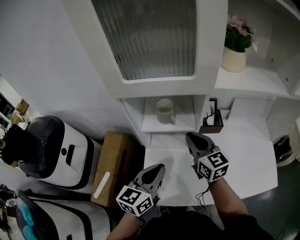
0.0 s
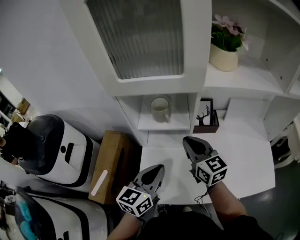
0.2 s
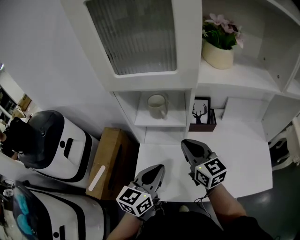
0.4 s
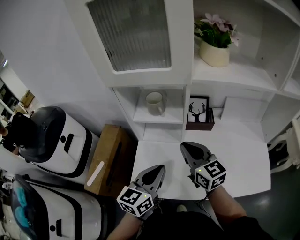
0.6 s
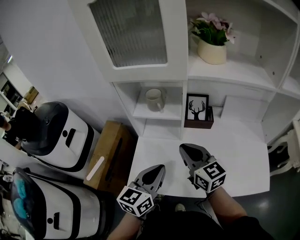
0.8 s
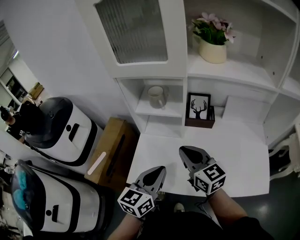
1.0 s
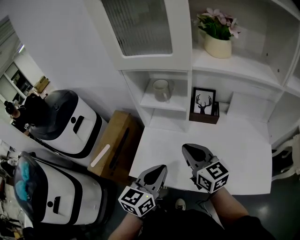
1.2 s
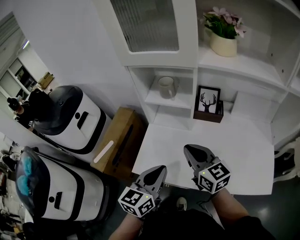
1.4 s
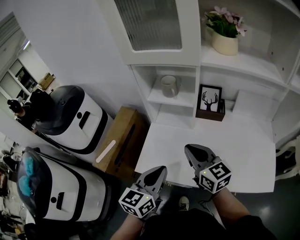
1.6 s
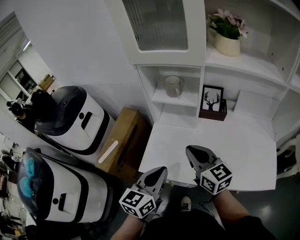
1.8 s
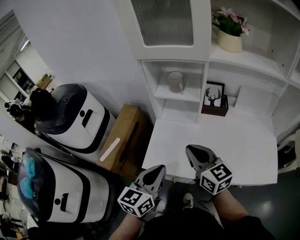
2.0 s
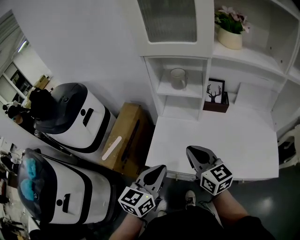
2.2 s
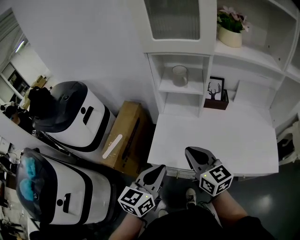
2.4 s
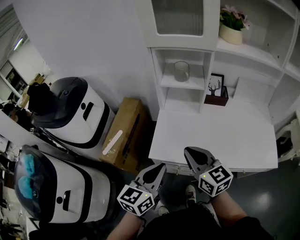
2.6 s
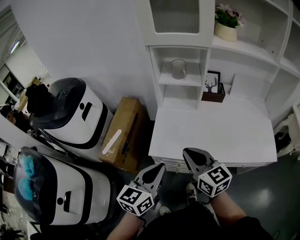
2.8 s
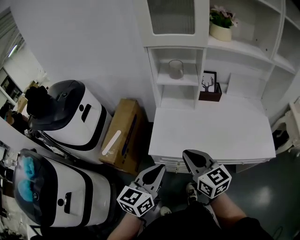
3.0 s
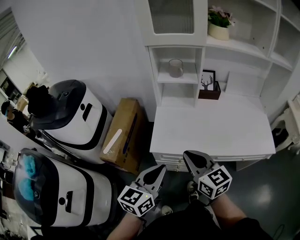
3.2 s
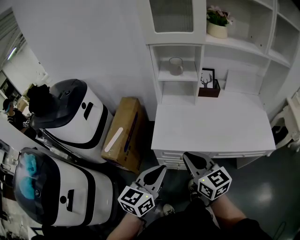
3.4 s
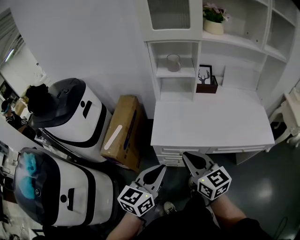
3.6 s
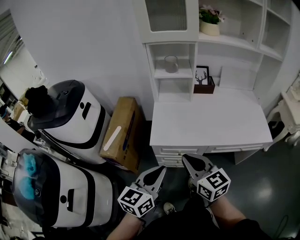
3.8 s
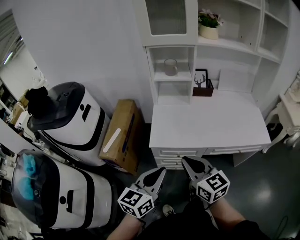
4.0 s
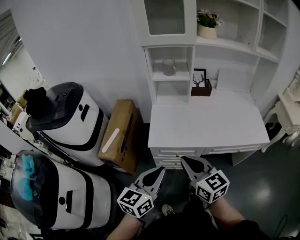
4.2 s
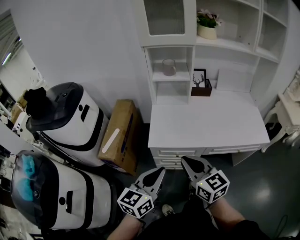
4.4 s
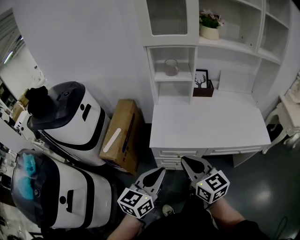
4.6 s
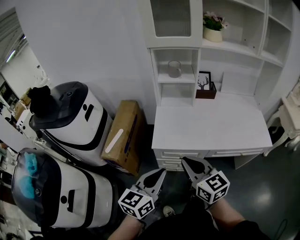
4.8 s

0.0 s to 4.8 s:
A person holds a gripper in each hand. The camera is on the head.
0.0 to 1.6 s: Both grippers travel together backward, about 20 cm.
1.6 to 3.2 s: The two grippers go roughly 20 cm backward and to the left.
3.2 to 4.8 s: Both grippers travel together backward, some 5 cm.

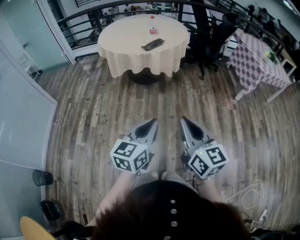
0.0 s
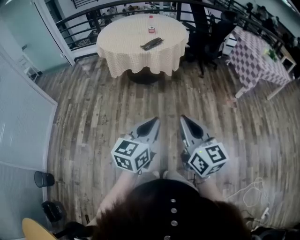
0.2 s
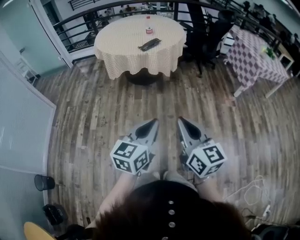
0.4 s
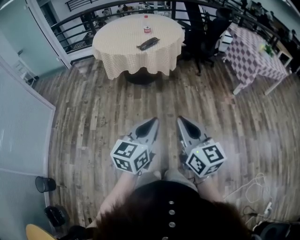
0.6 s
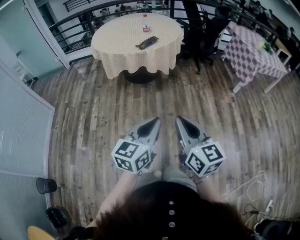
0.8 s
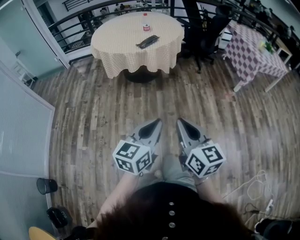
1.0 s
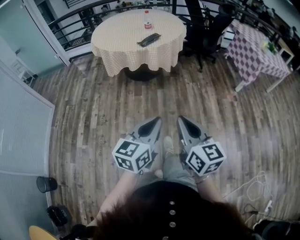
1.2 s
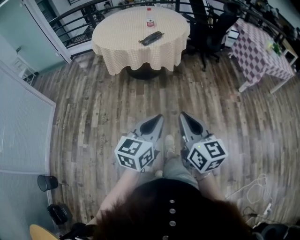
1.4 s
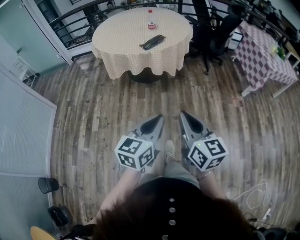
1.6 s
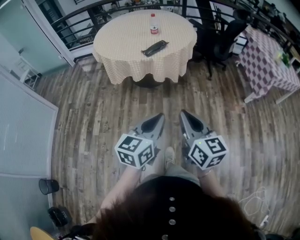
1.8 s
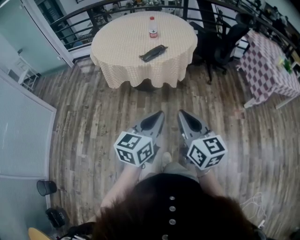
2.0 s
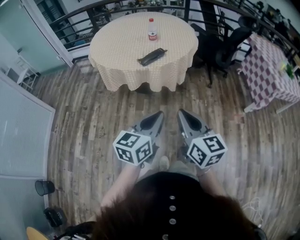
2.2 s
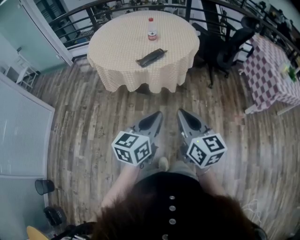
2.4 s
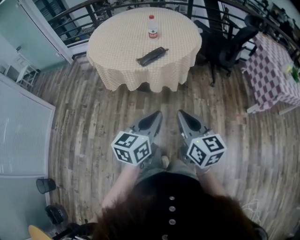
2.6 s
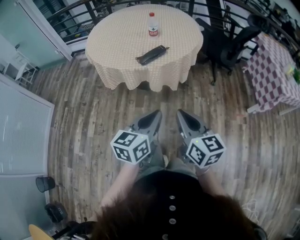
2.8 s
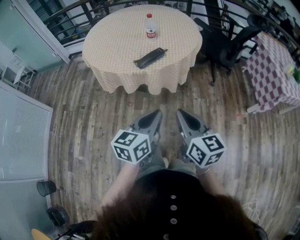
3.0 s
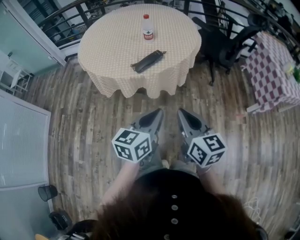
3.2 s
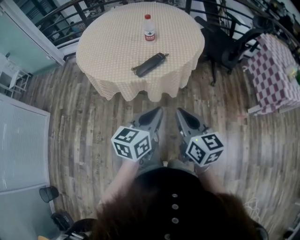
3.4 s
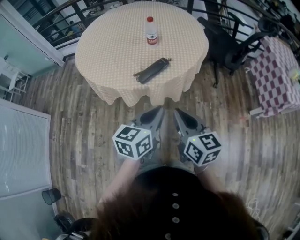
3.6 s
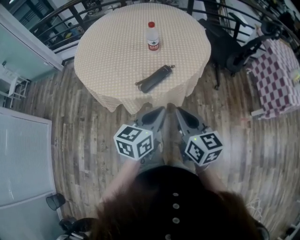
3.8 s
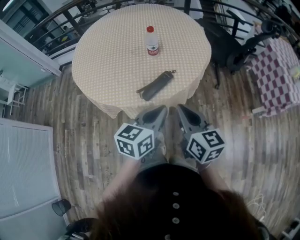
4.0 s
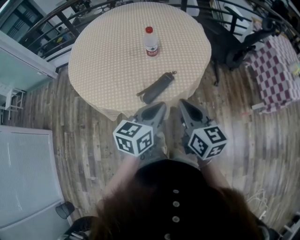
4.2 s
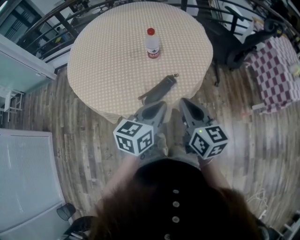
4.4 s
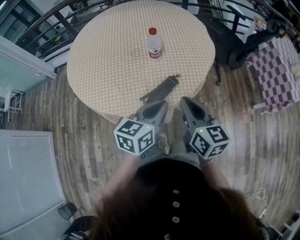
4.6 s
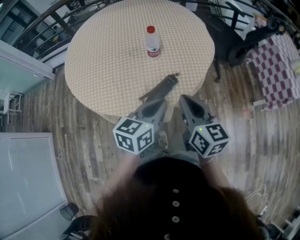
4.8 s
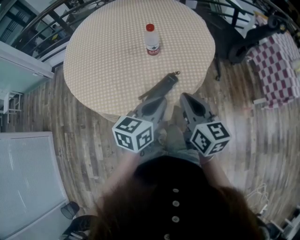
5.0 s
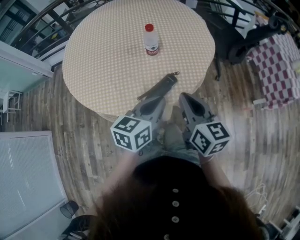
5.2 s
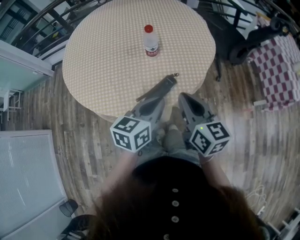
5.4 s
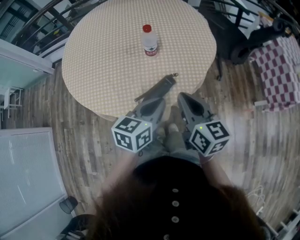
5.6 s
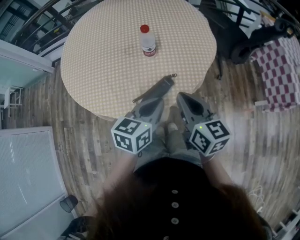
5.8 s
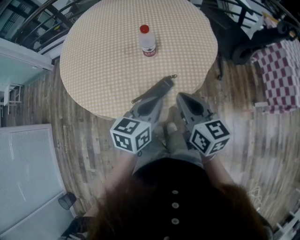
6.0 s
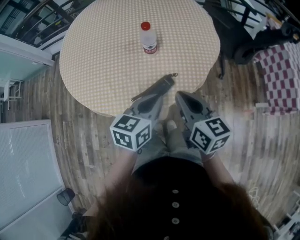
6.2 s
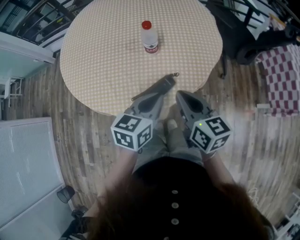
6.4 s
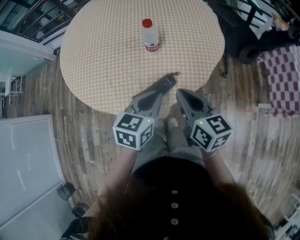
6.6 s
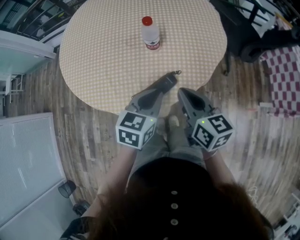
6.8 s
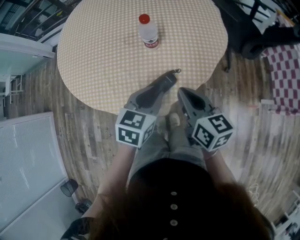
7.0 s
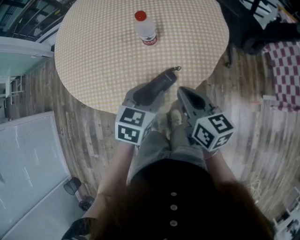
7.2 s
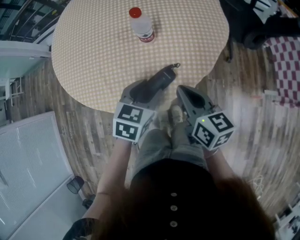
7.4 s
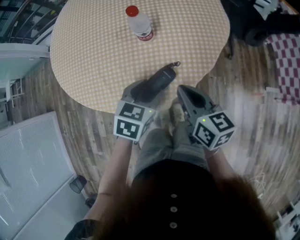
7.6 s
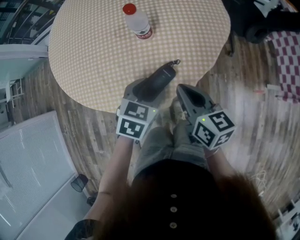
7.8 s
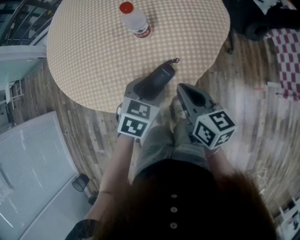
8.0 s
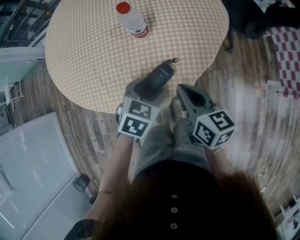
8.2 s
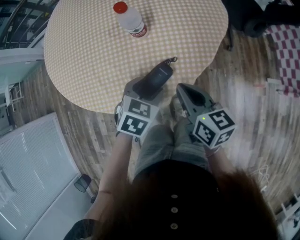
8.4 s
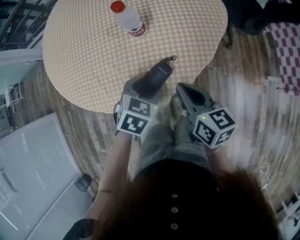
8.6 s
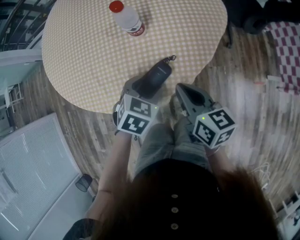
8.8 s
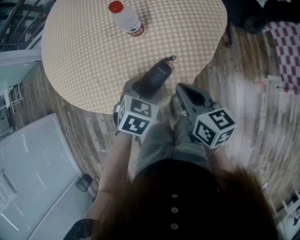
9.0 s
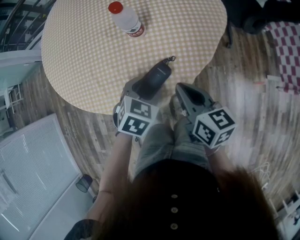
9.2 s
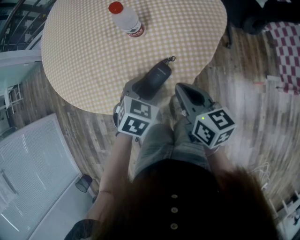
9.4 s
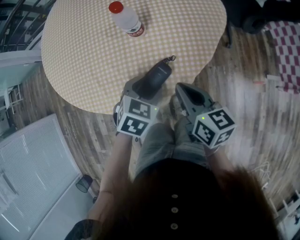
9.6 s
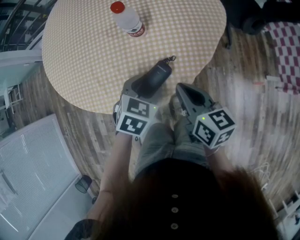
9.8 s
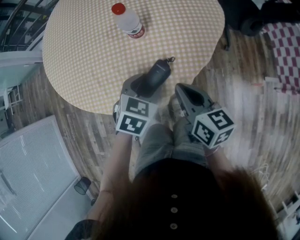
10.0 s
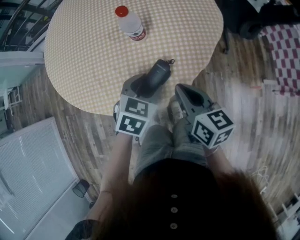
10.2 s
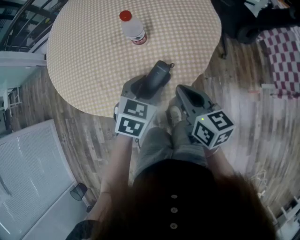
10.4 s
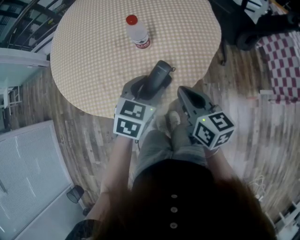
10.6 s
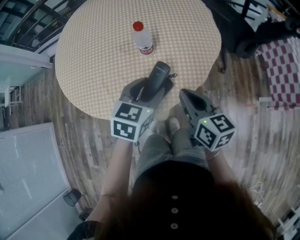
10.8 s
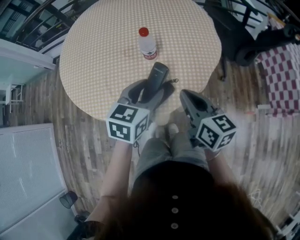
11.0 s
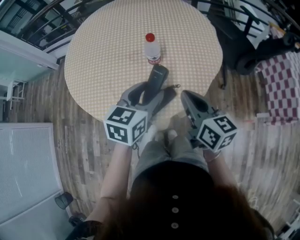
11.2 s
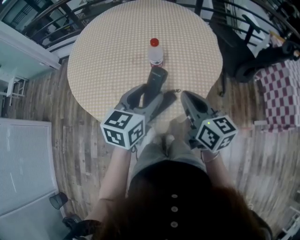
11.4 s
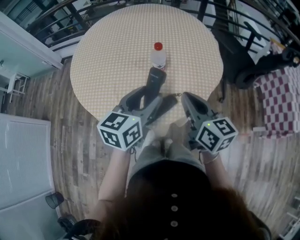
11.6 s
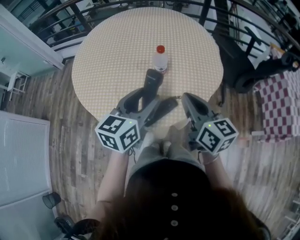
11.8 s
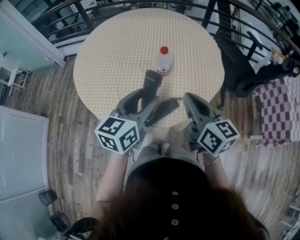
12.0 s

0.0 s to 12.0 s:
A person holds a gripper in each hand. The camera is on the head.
0.0 to 1.6 s: Both grippers move forward, approximately 15 cm.
1.6 to 3.0 s: The grippers both shift forward by approximately 30 cm.
3.0 to 4.4 s: Both grippers move forward, about 30 cm.
4.4 to 6.0 s: Both grippers move forward, about 5 cm.
6.0 to 7.6 s: Both grippers travel together downward, some 10 cm. The left gripper rotates some 30 degrees, and opens its fingers.
7.6 to 9.0 s: The grippers stay close to where they were, moving slightly.
9.0 to 10.4 s: The left gripper moves upward, approximately 5 cm.
10.4 to 12.0 s: The left gripper moves upward and to the left, some 20 cm, and points its fingers some 30 degrees further upward; the right gripper heads upward, covering approximately 15 cm.

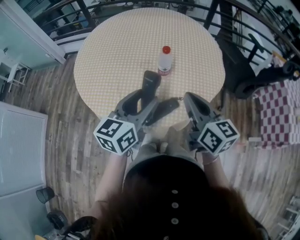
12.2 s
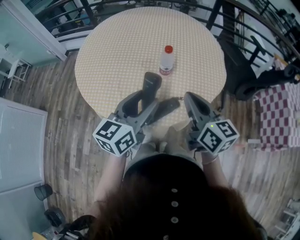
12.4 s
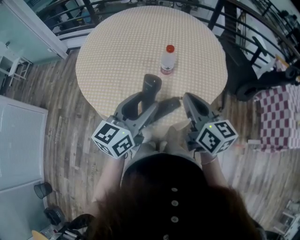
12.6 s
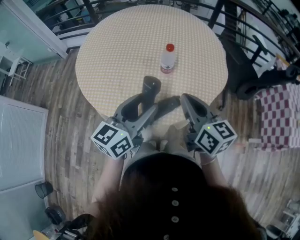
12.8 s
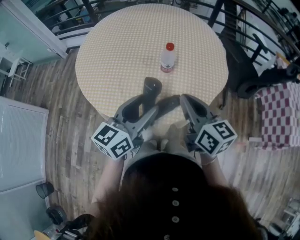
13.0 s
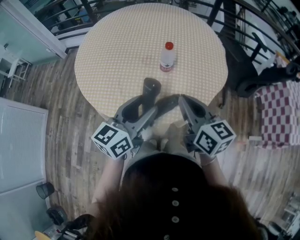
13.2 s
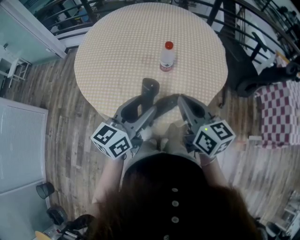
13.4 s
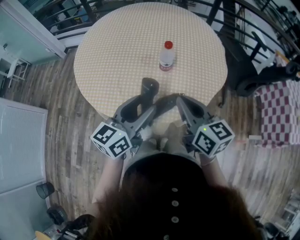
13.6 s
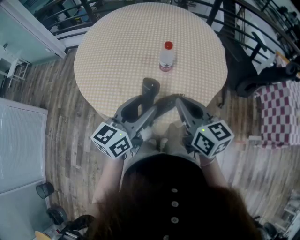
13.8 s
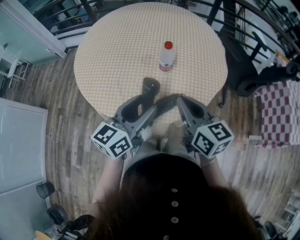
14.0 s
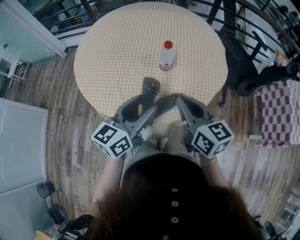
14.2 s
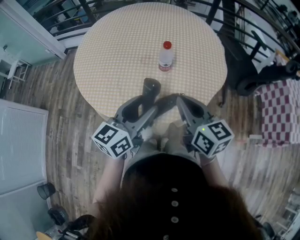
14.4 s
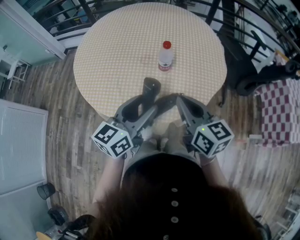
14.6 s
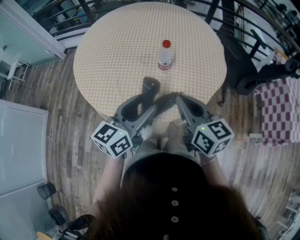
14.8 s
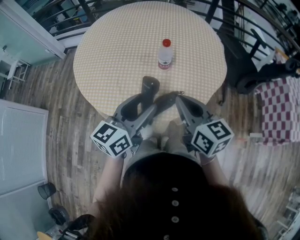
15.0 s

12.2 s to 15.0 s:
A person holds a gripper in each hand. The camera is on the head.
12.2 to 13.6 s: The grippers stay close to where they were, moving slightly.
13.6 to 15.0 s: Both grippers stay put.

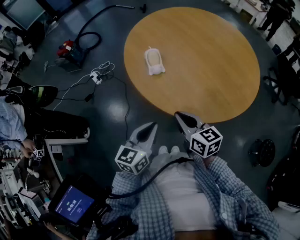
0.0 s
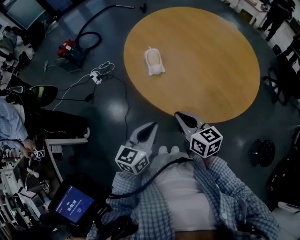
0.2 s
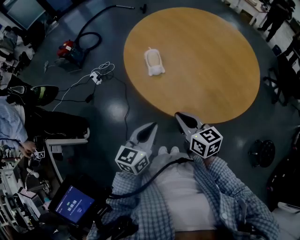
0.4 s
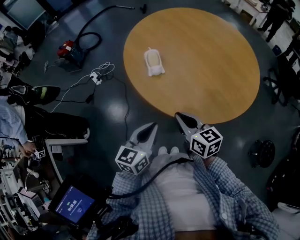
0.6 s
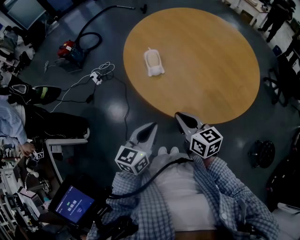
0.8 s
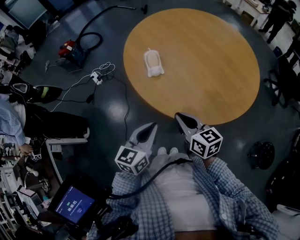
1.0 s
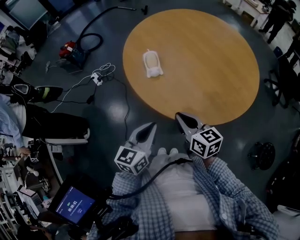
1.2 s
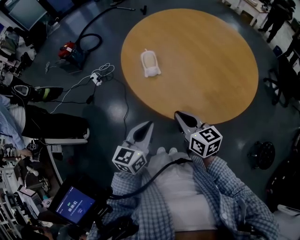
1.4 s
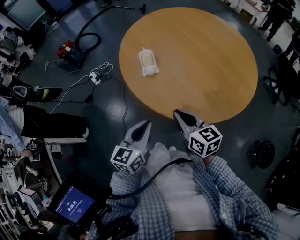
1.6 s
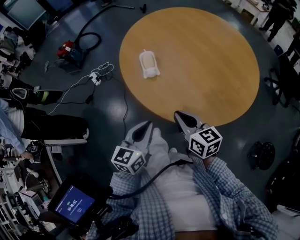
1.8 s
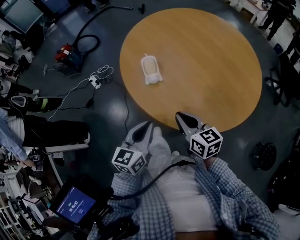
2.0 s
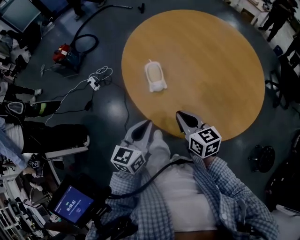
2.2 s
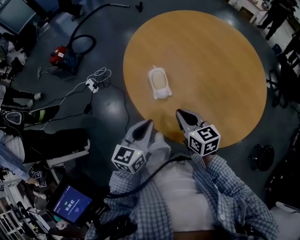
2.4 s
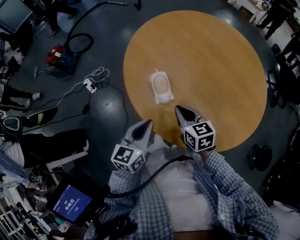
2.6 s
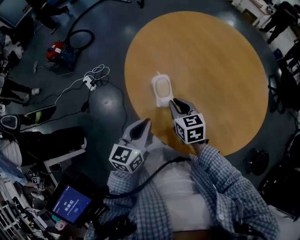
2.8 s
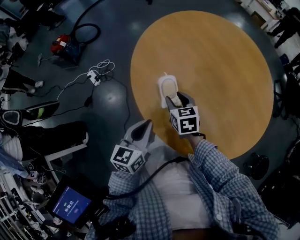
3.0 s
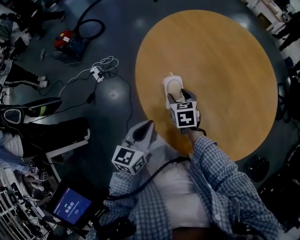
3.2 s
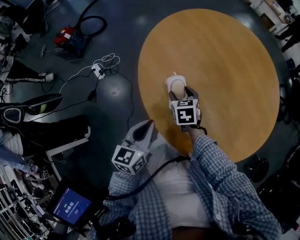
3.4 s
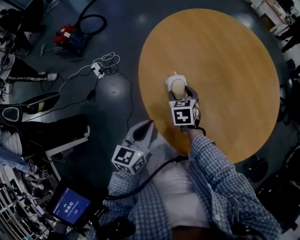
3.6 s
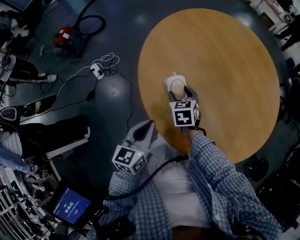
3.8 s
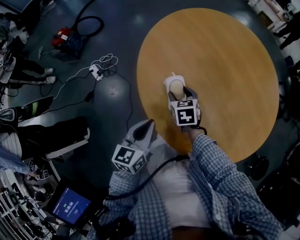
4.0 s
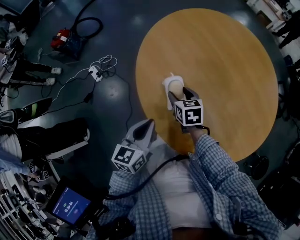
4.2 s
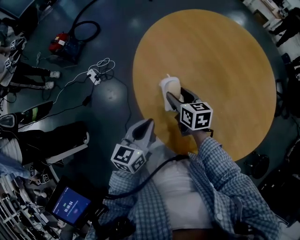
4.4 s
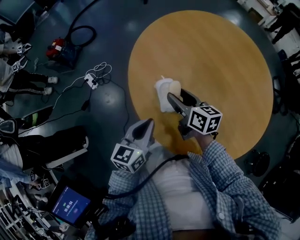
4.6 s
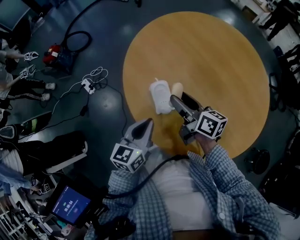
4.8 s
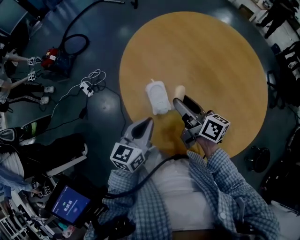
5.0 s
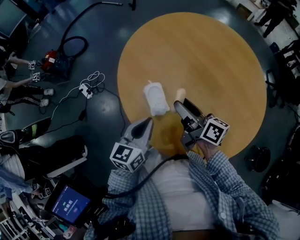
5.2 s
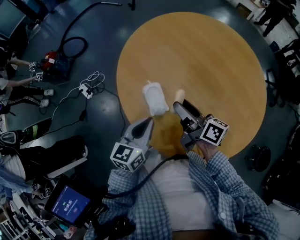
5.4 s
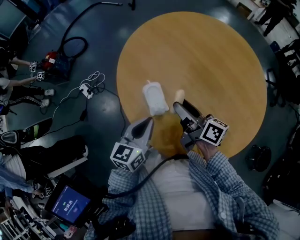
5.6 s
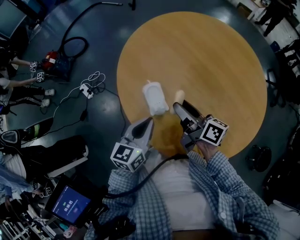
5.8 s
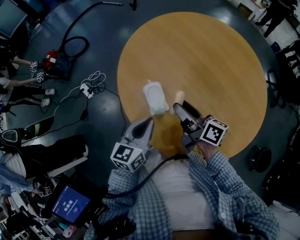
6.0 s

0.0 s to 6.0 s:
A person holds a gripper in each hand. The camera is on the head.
0.0 to 1.6 s: There are only small adjustments of the grippers.
1.6 to 3.0 s: The left gripper goes about 20 cm forward, while the right gripper travels forward and downward by approximately 30 cm, turns by approximately 30 degrees, and opens its fingers.
4.4 to 6.0 s: The right gripper shifts about 15 cm upward, to the right and backward, and swivels some 40 degrees. Meanwhile the left gripper goes some 5 cm to the right.
